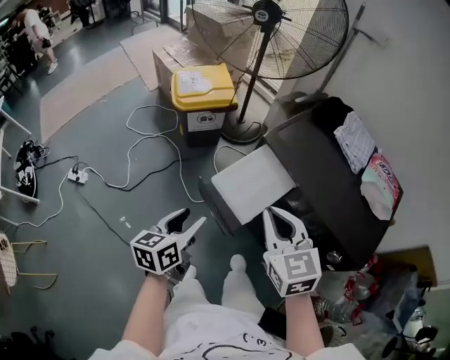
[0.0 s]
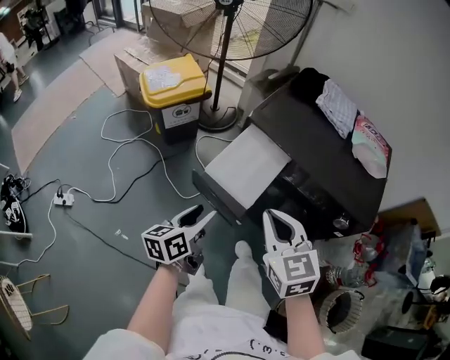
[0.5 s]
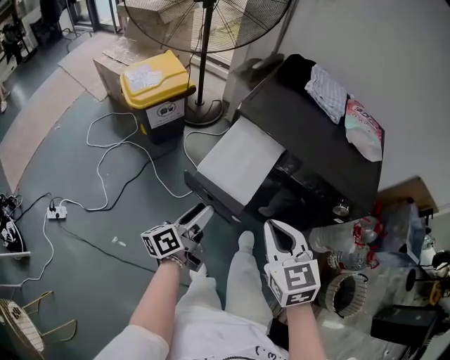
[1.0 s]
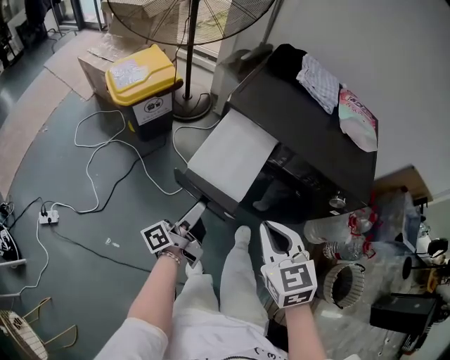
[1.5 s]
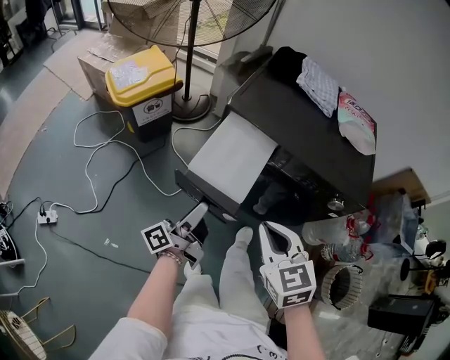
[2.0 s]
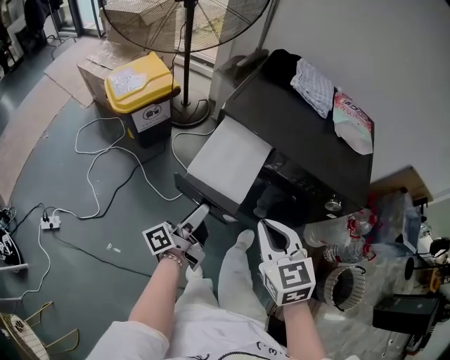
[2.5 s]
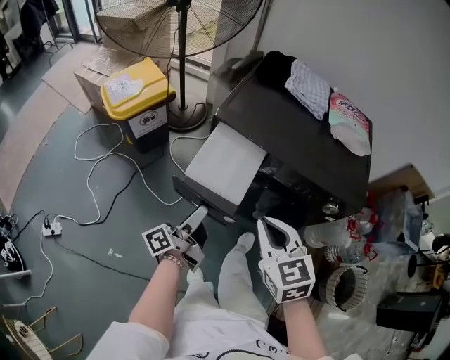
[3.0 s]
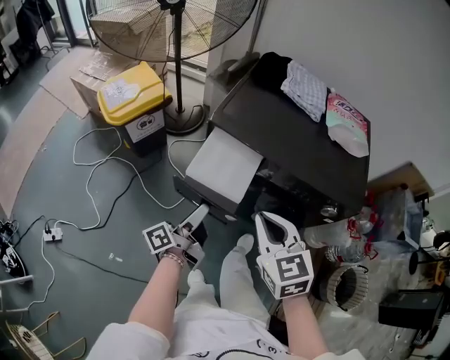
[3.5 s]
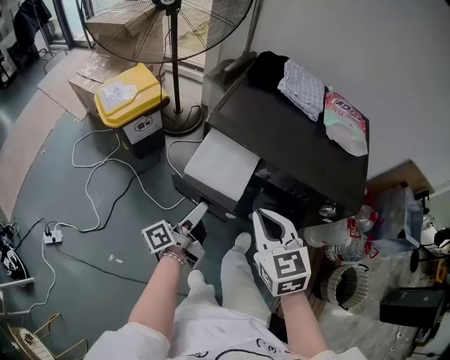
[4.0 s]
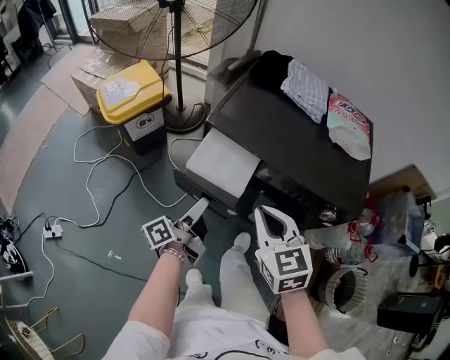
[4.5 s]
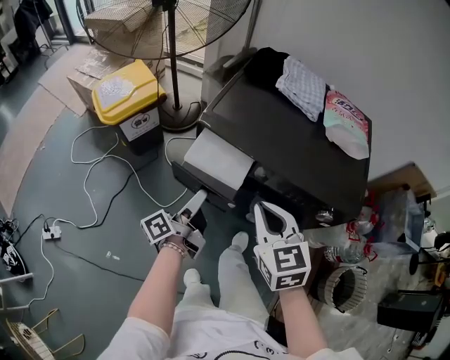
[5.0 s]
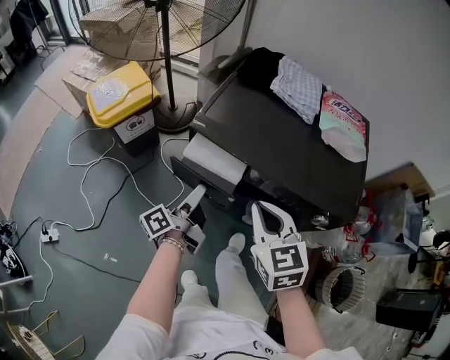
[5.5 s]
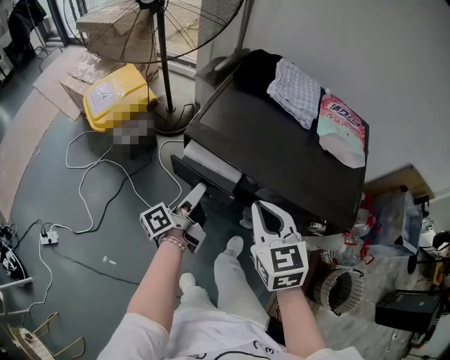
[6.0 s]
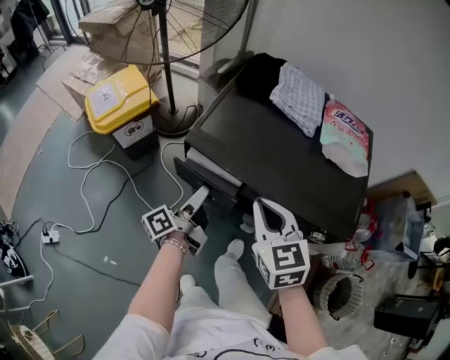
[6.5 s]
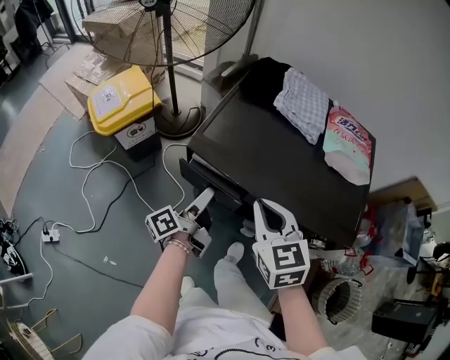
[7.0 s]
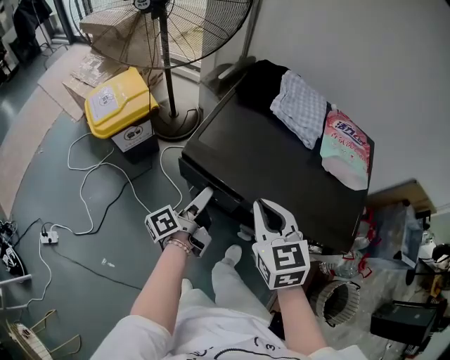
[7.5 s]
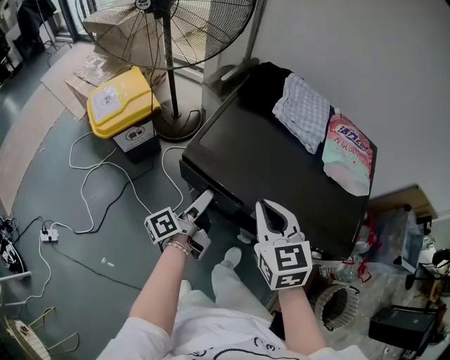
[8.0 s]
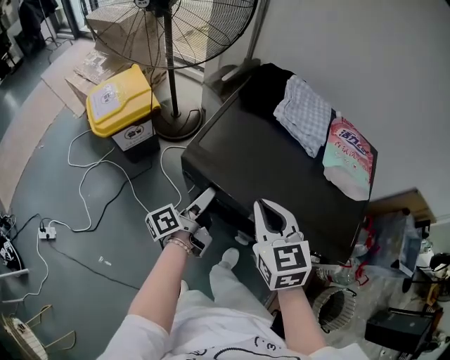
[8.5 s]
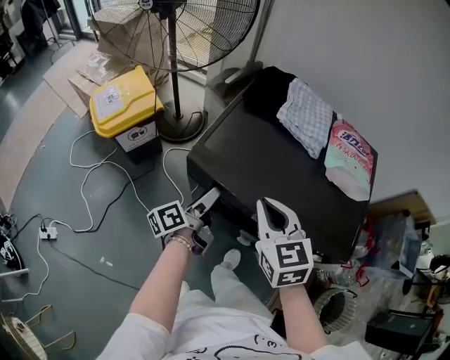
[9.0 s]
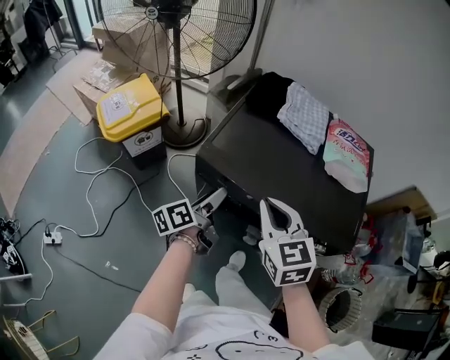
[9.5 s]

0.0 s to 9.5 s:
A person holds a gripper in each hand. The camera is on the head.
0.0 to 2.0 s: The left gripper travels downward by approximately 10 cm, and tilts its fingers about 40 degrees upward. The right gripper shifts some 10 cm downward and backward, and rotates about 20 degrees.
2.0 to 4.0 s: Both grippers move forward, about 5 cm.
4.0 to 5.5 s: The two grippers go approximately 5 cm forward.
5.5 to 7.5 s: Both grippers travel together forward, about 10 cm.
7.5 to 9.5 s: The grippers make only small movements.

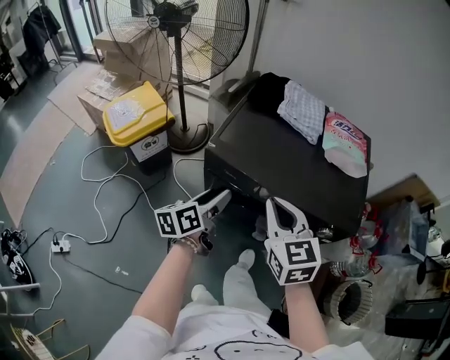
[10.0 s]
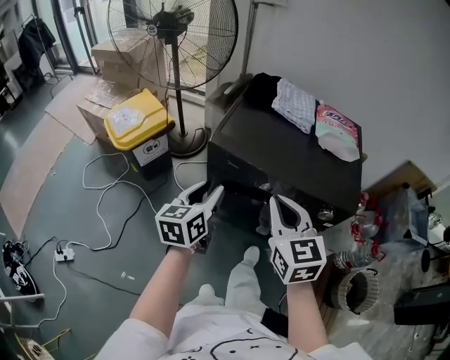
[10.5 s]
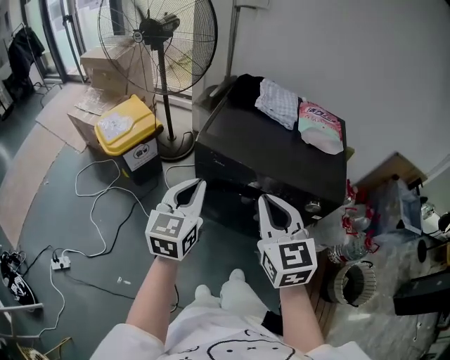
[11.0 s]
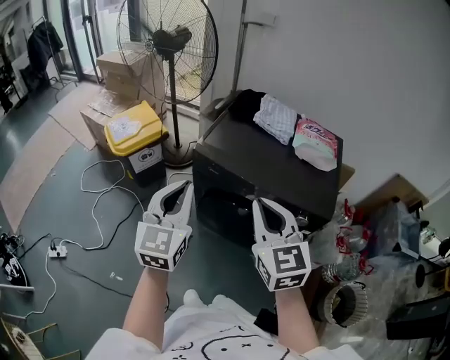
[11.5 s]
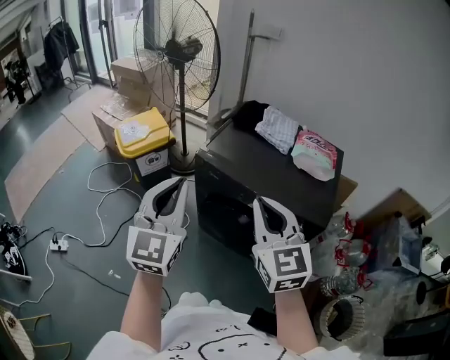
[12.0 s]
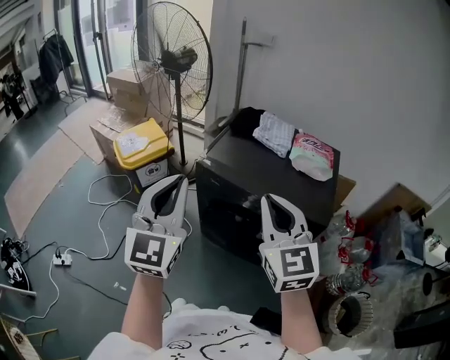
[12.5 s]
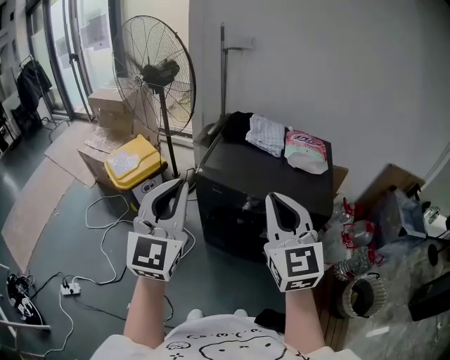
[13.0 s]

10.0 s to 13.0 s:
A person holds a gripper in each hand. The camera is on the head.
10.0 to 11.5 s: The right gripper is displaced backward and upward by about 15 cm. Meanwhile the left gripper travels upward and backward by roughly 20 cm, twists about 50 degrees clockwise, seen from behind, and closes.
11.5 to 13.0 s: The grippers both shift upward by roughly 10 cm.

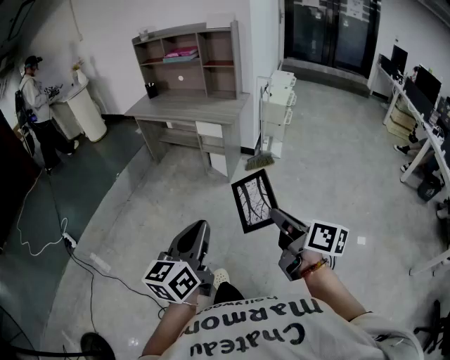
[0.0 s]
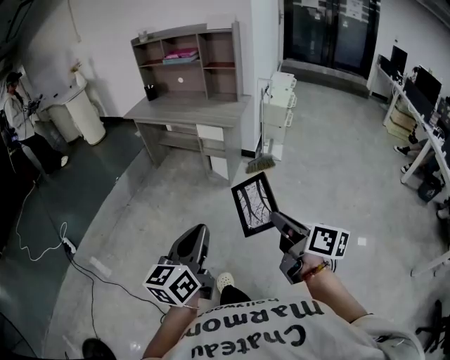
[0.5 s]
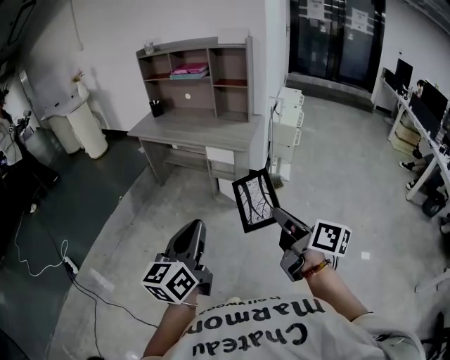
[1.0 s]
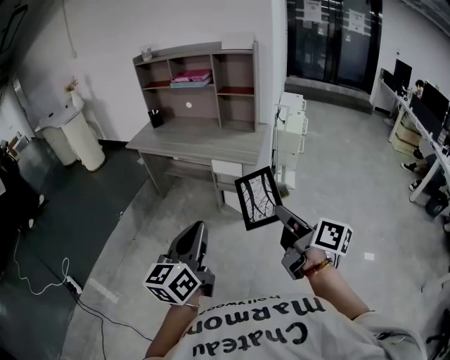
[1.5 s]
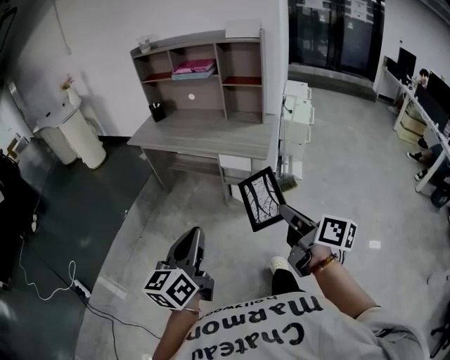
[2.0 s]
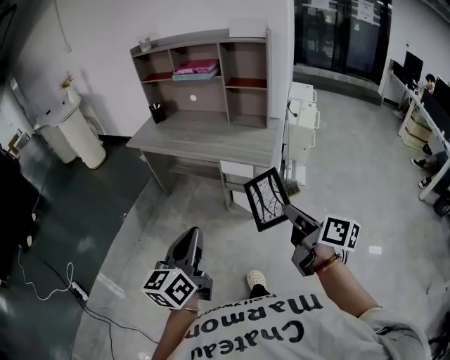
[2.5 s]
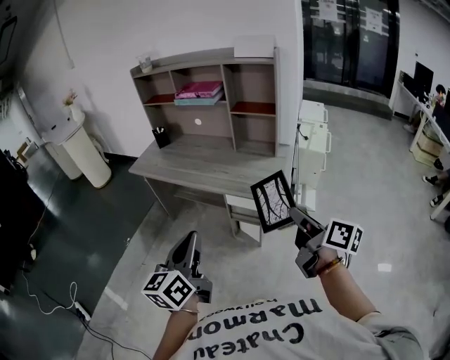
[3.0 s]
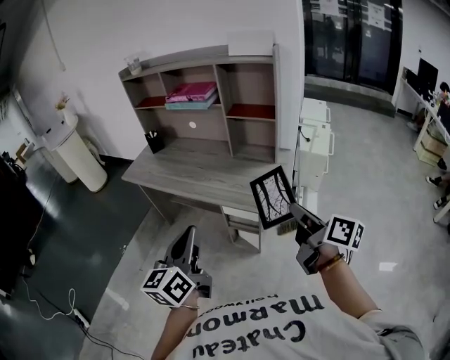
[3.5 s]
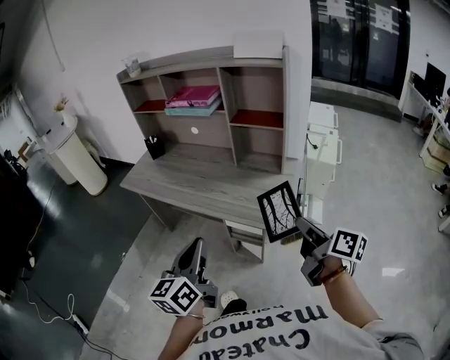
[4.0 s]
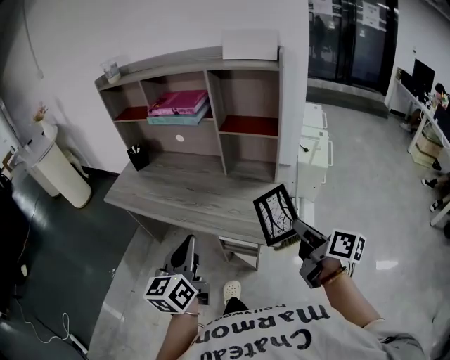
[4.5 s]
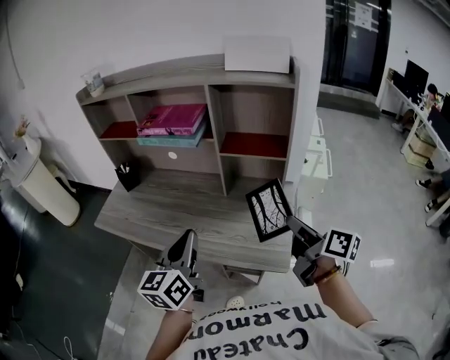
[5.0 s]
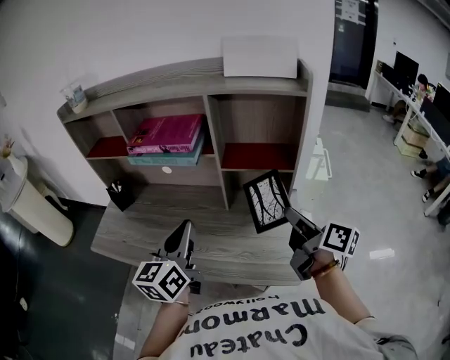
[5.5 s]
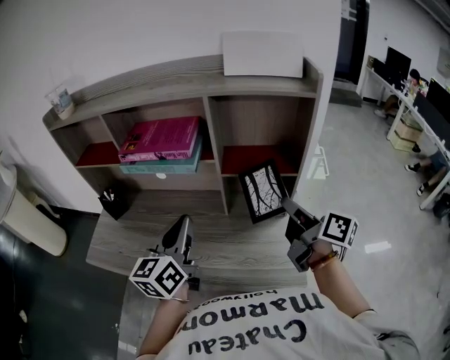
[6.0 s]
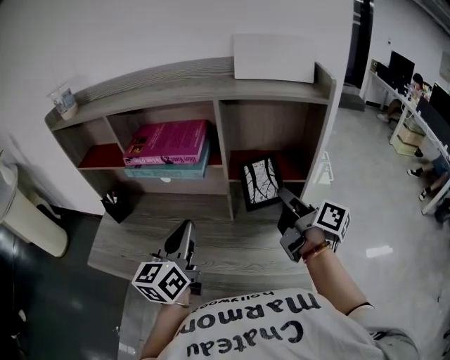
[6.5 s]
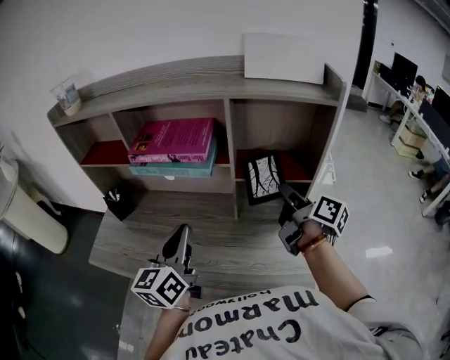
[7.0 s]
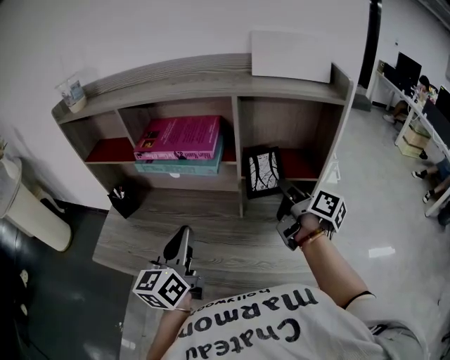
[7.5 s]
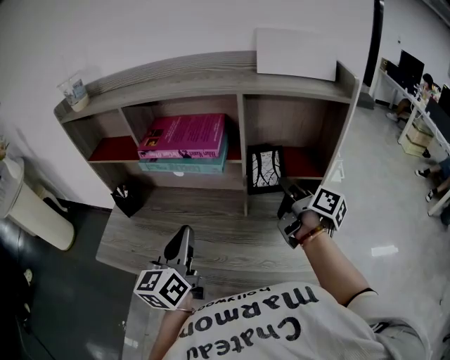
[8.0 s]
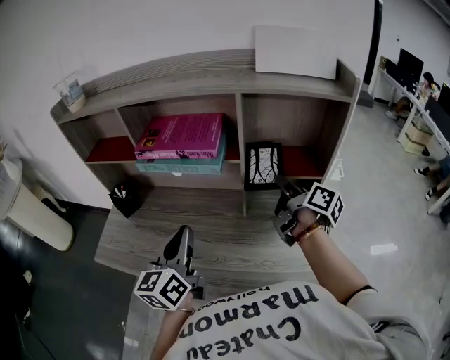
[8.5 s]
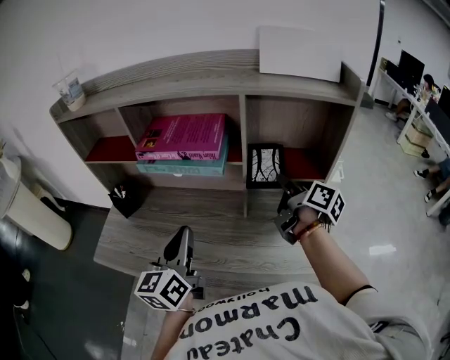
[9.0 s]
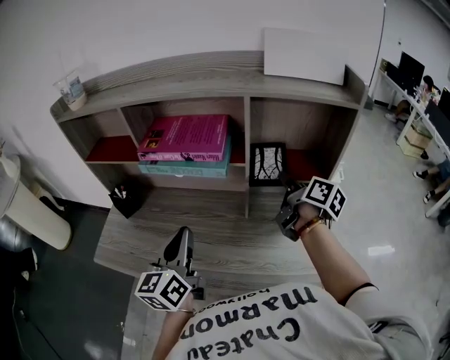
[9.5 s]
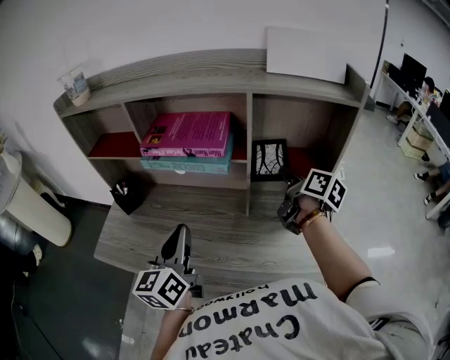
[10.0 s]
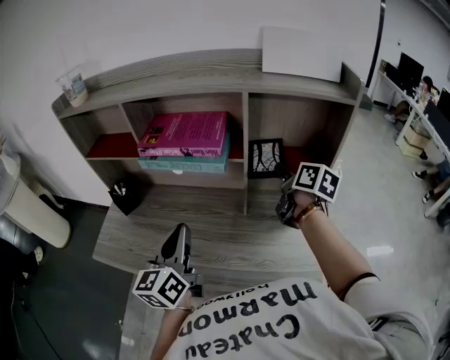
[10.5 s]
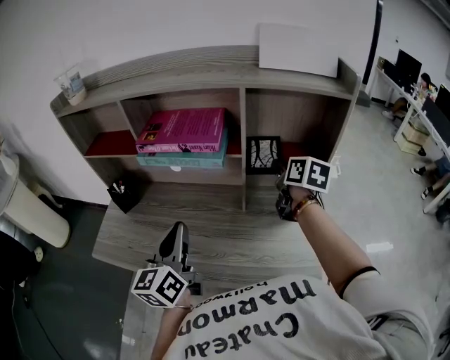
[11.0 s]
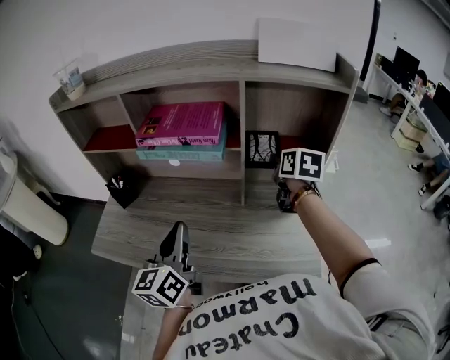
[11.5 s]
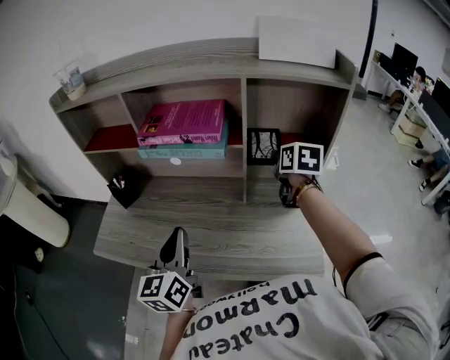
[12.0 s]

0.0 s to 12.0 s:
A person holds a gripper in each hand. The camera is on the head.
0.0 to 2.0 s: The two grippers go approximately 35 cm forward and to the left.
2.0 to 4.0 s: The two grippers go about 35 cm forward.
4.0 to 6.0 s: Both grippers move forward, approximately 35 cm.
6.0 to 8.0 s: The right gripper travels forward and to the left by roughly 10 cm, while the left gripper is displaced to the left by roughly 5 cm.
8.0 to 10.0 s: The grippers move only a little.
10.0 to 12.0 s: The right gripper changes its angle by about 40 degrees.

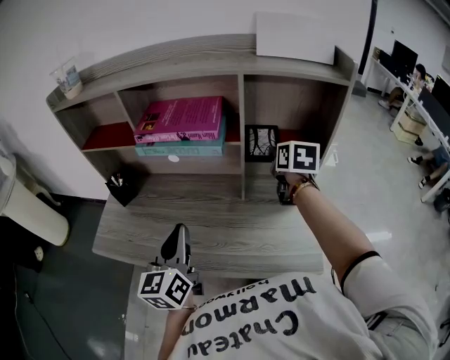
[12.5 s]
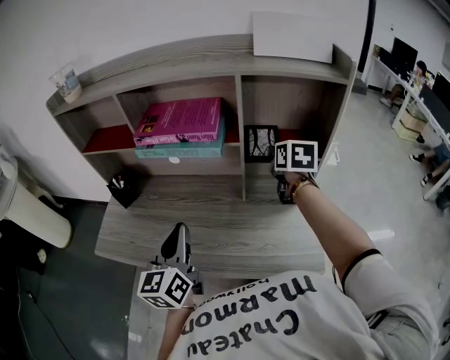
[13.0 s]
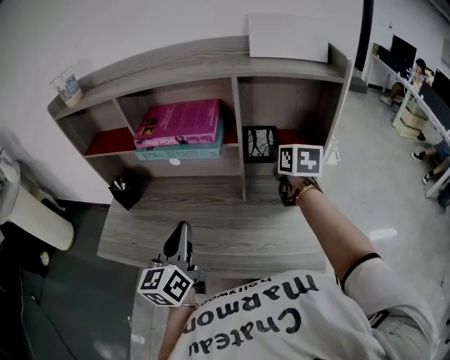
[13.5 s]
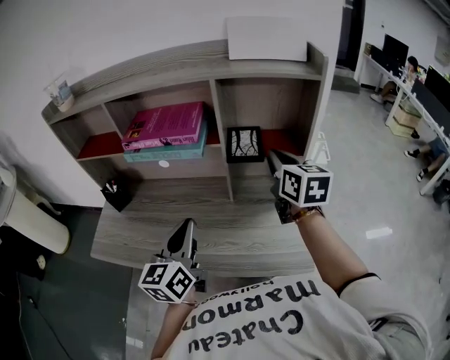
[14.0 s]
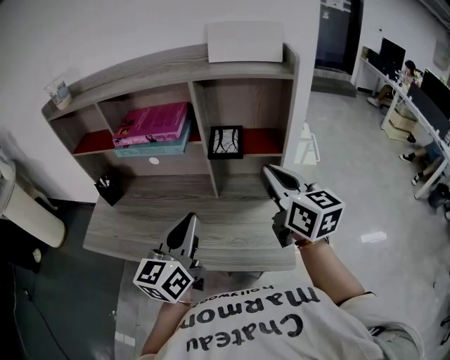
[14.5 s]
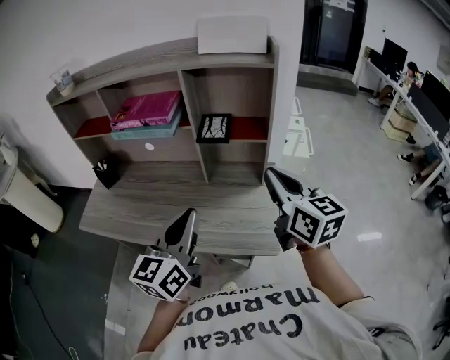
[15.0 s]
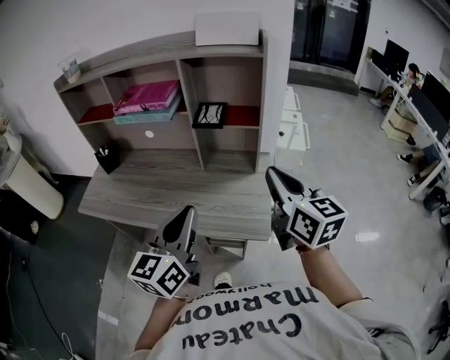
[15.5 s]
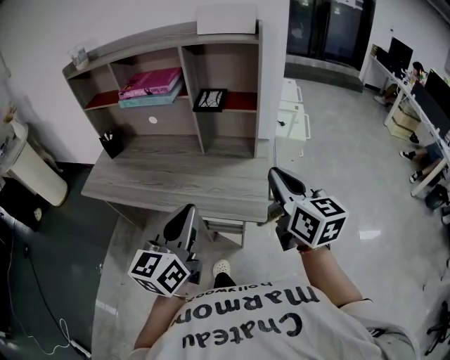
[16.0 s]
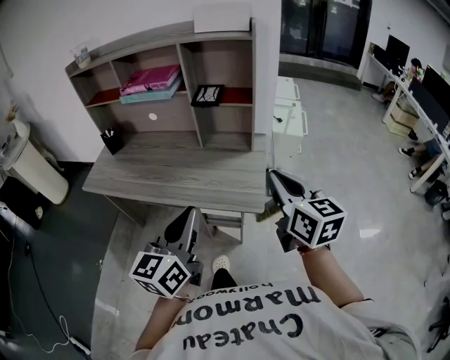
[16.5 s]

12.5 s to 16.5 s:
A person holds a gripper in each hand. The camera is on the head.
12.5 to 14.5 s: The left gripper travels to the right by roughly 15 cm. The right gripper travels backward and upward by roughly 20 cm, turns by about 30 degrees, and closes.
14.5 to 16.5 s: The right gripper goes about 25 cm backward and to the right. Meanwhile the left gripper heads backward, covering roughly 25 cm.
